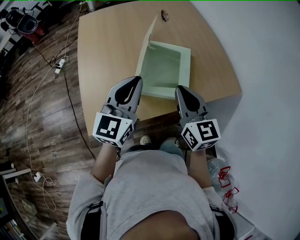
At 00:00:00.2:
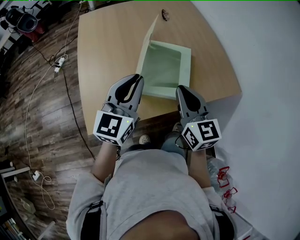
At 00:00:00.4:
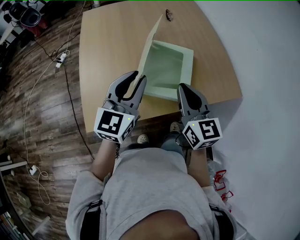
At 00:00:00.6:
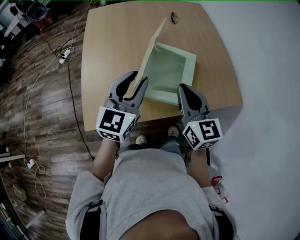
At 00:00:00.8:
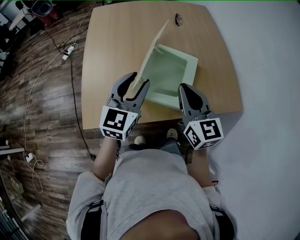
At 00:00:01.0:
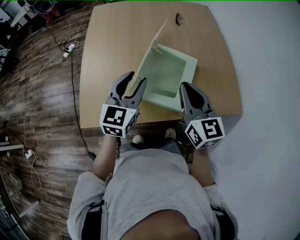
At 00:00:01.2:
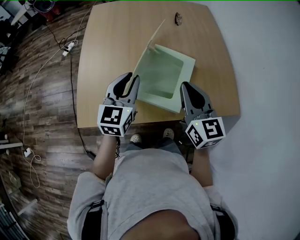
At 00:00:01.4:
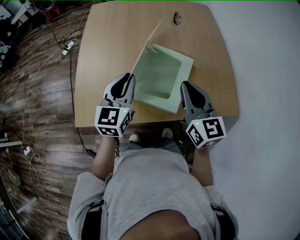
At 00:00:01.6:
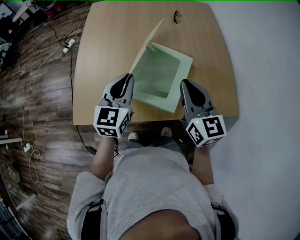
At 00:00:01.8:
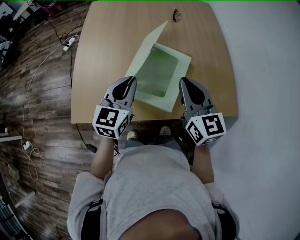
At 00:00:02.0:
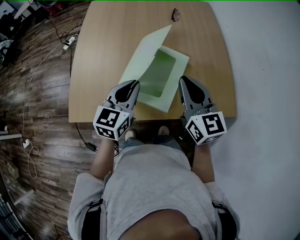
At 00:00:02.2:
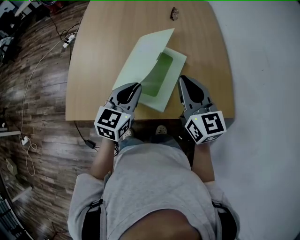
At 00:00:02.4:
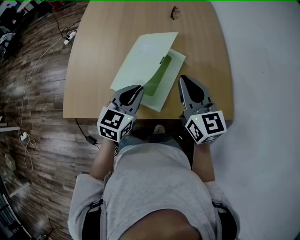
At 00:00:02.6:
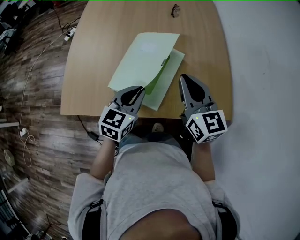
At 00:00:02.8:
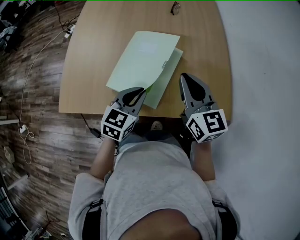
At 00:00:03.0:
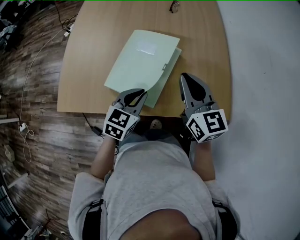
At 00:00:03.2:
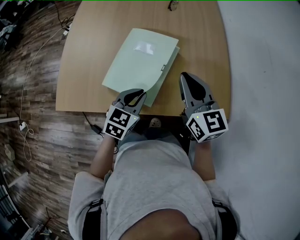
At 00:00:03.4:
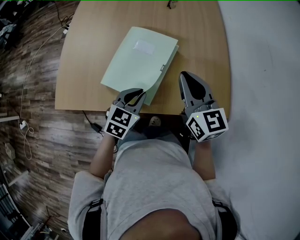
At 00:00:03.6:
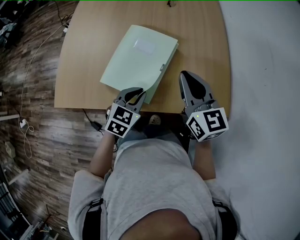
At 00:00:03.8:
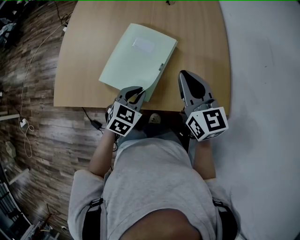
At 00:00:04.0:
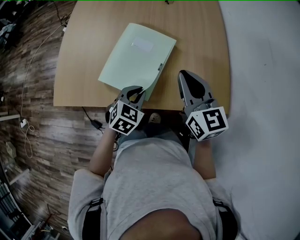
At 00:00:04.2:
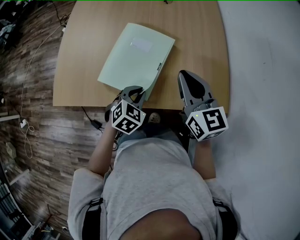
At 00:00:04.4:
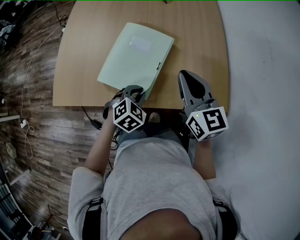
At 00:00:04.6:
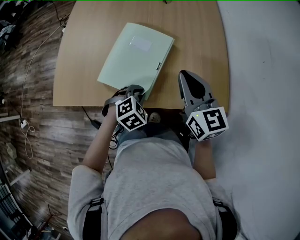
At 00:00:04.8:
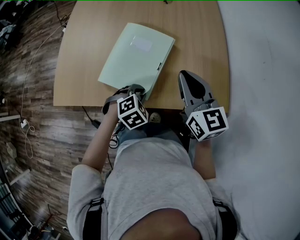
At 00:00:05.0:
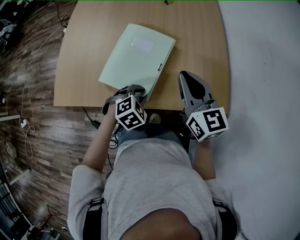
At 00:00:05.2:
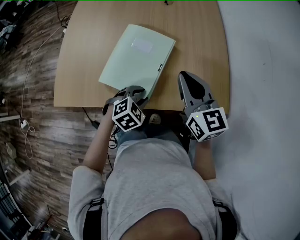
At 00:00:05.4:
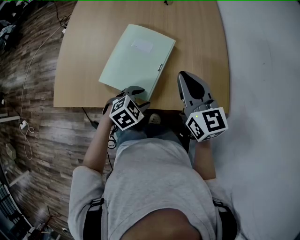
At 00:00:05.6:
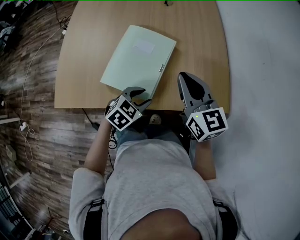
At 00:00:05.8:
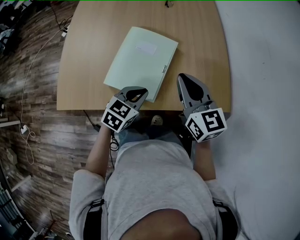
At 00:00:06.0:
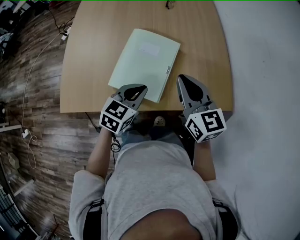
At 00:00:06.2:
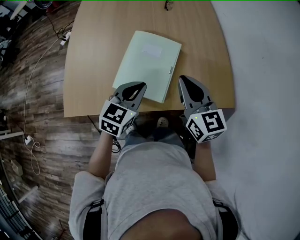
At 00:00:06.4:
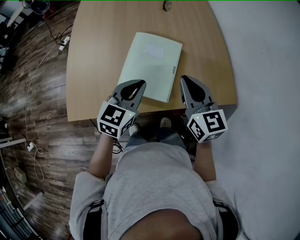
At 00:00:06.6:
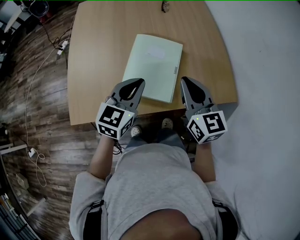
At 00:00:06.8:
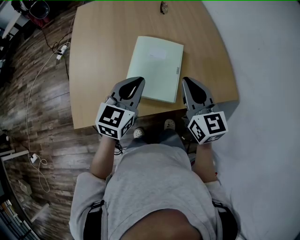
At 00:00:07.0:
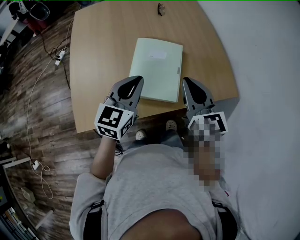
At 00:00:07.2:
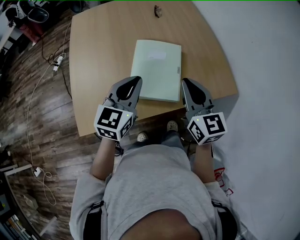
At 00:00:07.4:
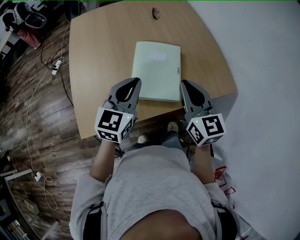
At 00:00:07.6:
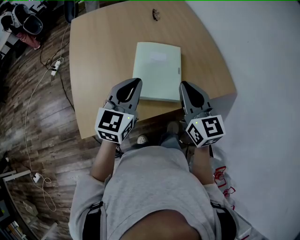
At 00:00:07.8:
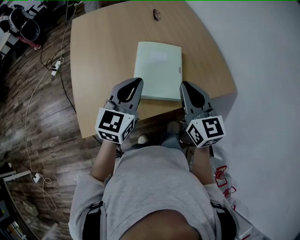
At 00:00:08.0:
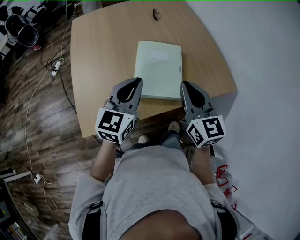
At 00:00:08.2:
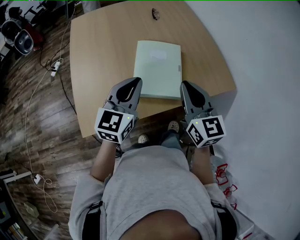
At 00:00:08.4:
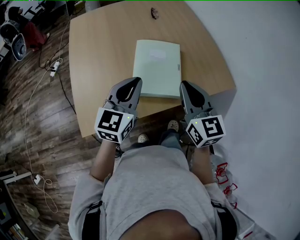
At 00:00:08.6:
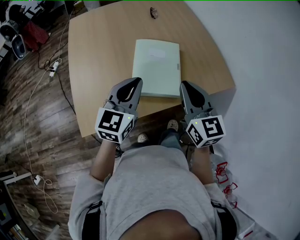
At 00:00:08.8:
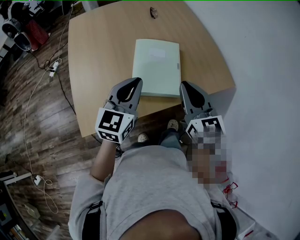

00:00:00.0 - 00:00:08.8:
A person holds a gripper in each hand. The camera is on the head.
00:00:00.0 - 00:00:01.4: The right gripper shifts roughly 10 cm forward and to the right, while the left gripper heads forward, covering about 5 cm, turns by about 20 degrees, and opens, then closes once more.
00:00:01.4 - 00:00:03.0: The left gripper travels to the right and downward by approximately 20 cm, and rotates roughly 20 degrees, while the right gripper heads to the right, covering about 10 cm.
00:00:03.0 - 00:00:04.4: The left gripper heads downward, covering about 5 cm, and swivels some 30 degrees.
00:00:04.4 - 00:00:05.8: The left gripper moves about 5 cm, changes its angle by approximately 30 degrees, and opens, then closes again.
00:00:05.8 - 00:00:07.4: The left gripper is displaced upward and to the left by some 20 cm, and rotates approximately 30 degrees; the right gripper shifts roughly 15 cm to the left and backward, and changes its angle by approximately 20 degrees.
00:00:07.4 - 00:00:08.8: There are only small adjustments of the grippers.

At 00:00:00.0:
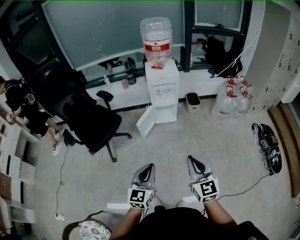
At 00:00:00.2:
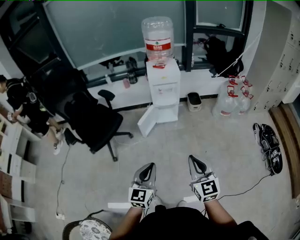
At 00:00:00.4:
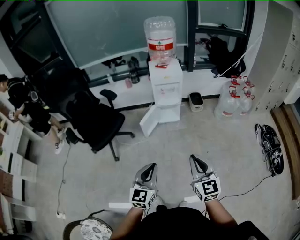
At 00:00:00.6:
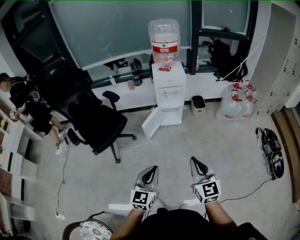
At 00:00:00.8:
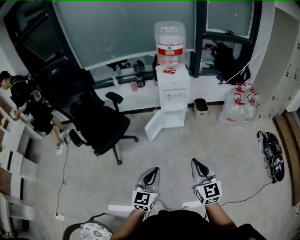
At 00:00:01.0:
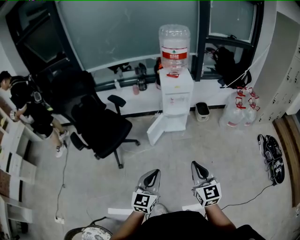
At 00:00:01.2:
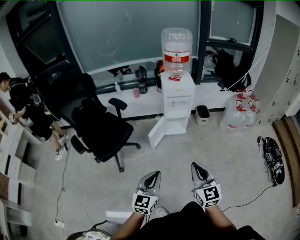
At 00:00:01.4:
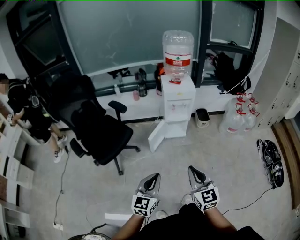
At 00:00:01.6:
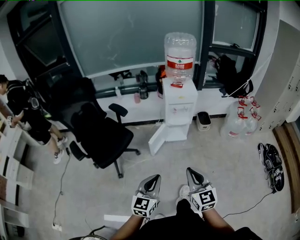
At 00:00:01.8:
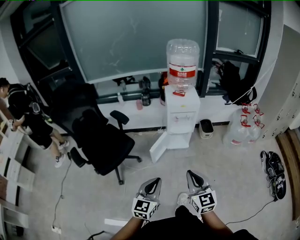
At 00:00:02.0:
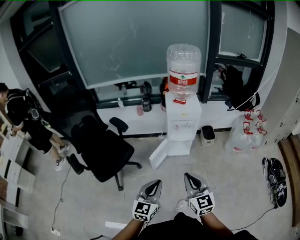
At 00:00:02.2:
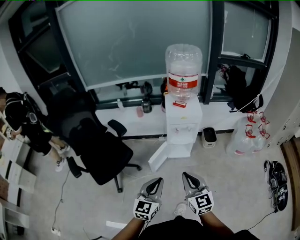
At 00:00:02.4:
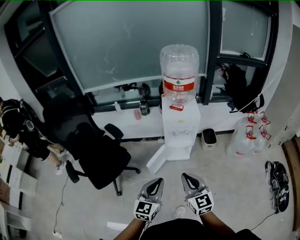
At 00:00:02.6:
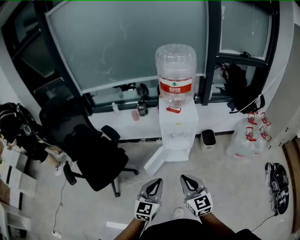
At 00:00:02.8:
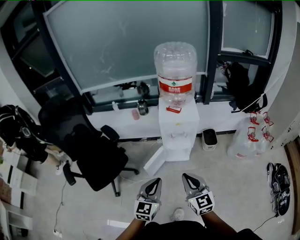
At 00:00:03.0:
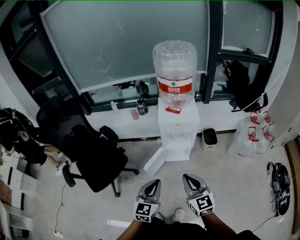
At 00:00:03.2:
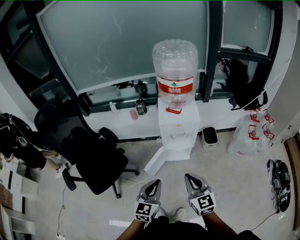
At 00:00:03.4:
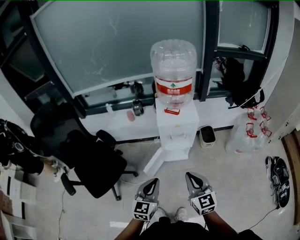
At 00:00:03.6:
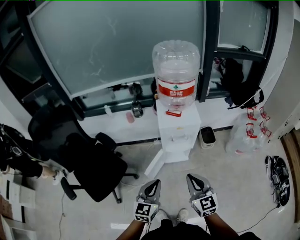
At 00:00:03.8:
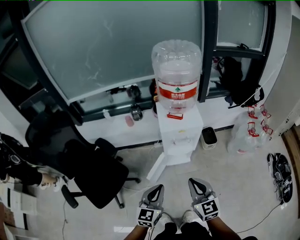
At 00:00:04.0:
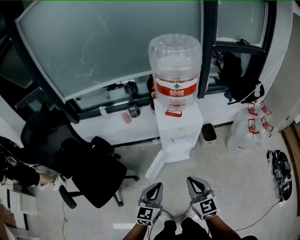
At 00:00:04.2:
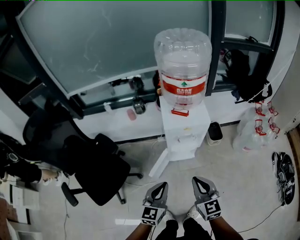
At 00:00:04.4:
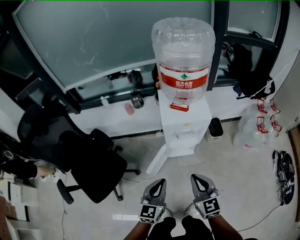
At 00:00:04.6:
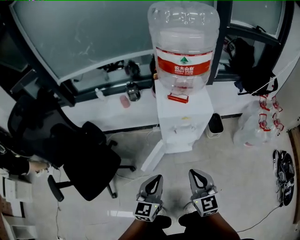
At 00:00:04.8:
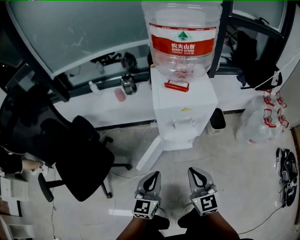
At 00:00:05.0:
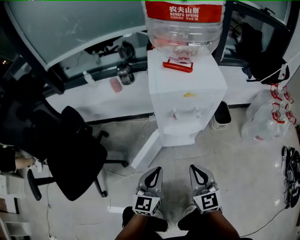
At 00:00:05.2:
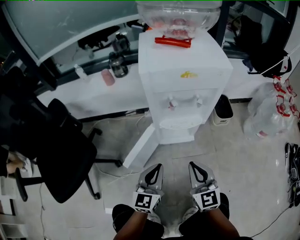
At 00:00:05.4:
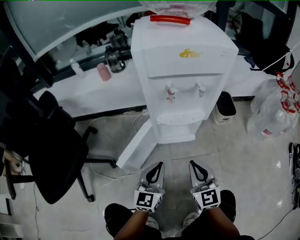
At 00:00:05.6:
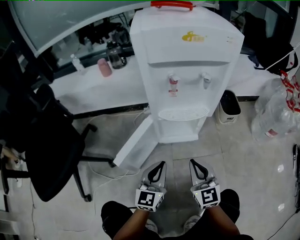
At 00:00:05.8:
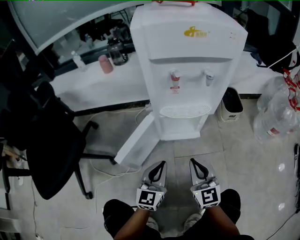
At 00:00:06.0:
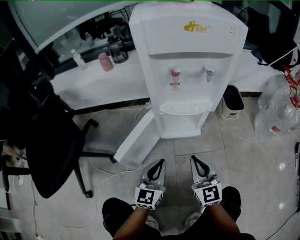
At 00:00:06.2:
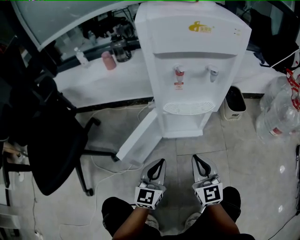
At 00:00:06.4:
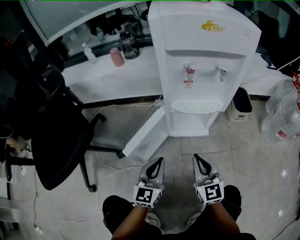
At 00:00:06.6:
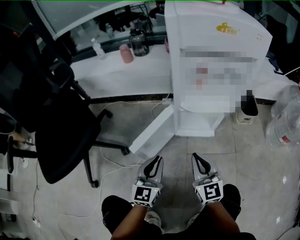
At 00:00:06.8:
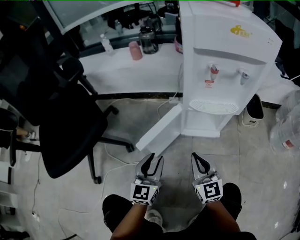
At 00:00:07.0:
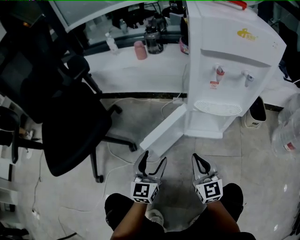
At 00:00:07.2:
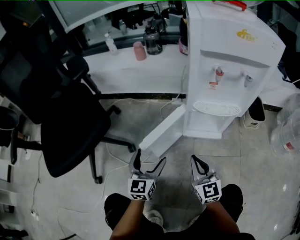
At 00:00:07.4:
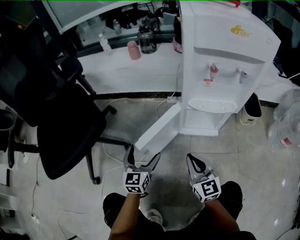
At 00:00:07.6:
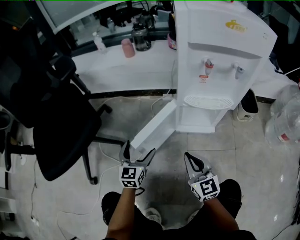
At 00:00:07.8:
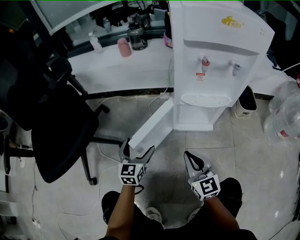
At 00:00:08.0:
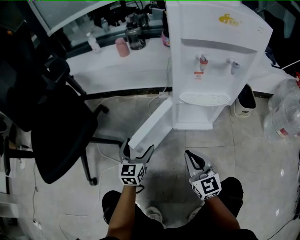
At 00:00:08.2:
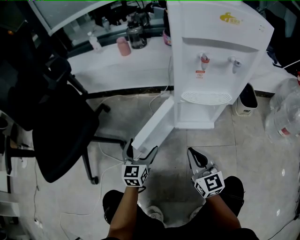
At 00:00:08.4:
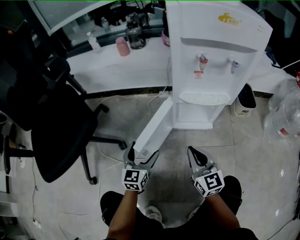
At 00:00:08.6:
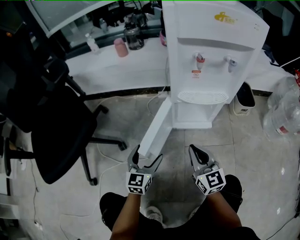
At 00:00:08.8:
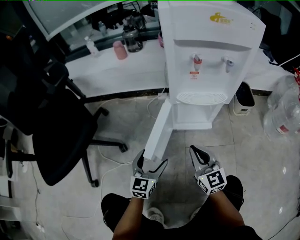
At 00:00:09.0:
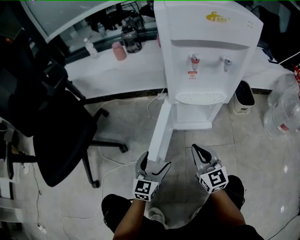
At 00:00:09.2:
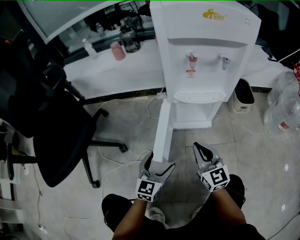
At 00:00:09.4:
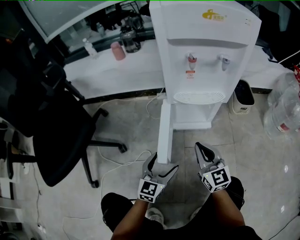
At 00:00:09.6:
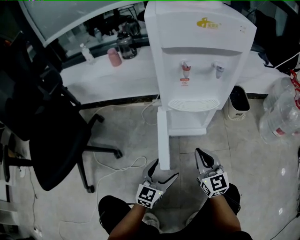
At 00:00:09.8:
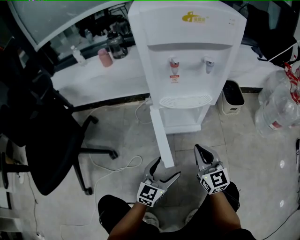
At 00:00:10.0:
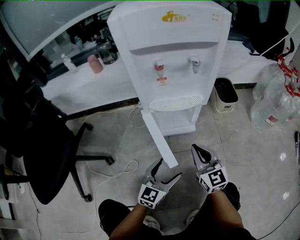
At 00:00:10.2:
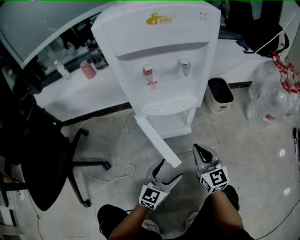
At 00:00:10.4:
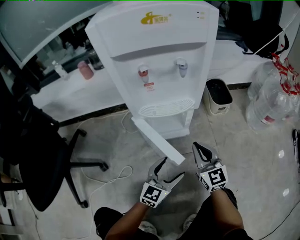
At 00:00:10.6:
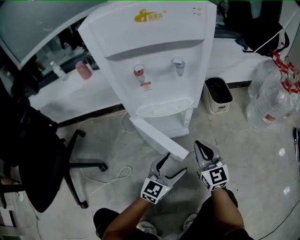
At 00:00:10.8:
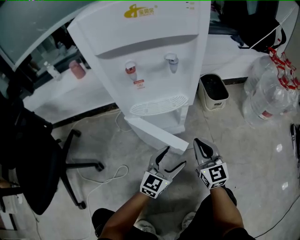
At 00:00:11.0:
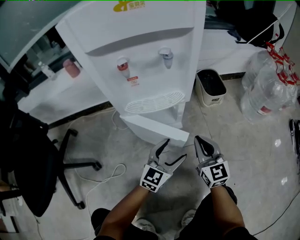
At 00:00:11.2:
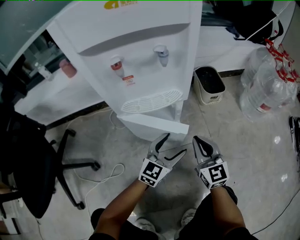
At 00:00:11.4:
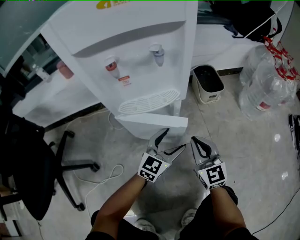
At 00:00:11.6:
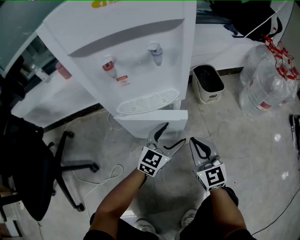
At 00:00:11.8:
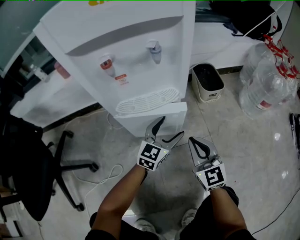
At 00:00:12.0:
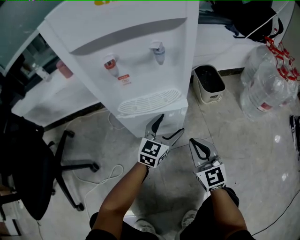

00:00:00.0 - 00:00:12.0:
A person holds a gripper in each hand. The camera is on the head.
00:00:00.0 - 00:00:01.6: Both grippers travel together to the left and forward, roughly 15 cm.
00:00:01.6 - 00:00:03.0: Both grippers travel together forward, some 25 cm.
00:00:03.0 - 00:00:04.4: The two grippers go about 10 cm forward and downward.
00:00:04.4 - 00:00:06.0: Both grippers move downward, about 50 cm.
00:00:06.0 - 00:00:07.6: The left gripper heads to the left, covering some 15 cm, and opens its fingers. The right gripper travels to the left by some 10 cm.
00:00:07.6 - 00:00:09.0: The left gripper heads to the right and backward, covering roughly 10 cm. The right gripper travels to the right by approximately 5 cm.
00:00:09.0 - 00:00:10.4: The left gripper goes roughly 20 cm to the right, and changes its angle by roughly 30 degrees; the right gripper moves to the right and forward, about 15 cm.
00:00:10.4 - 00:00:12.0: The left gripper shifts some 15 cm forward.

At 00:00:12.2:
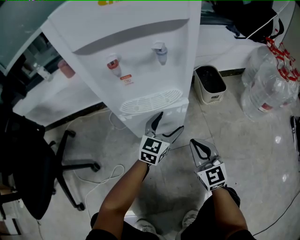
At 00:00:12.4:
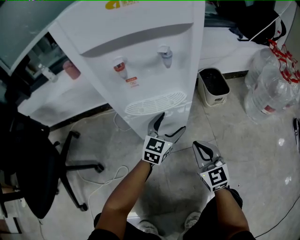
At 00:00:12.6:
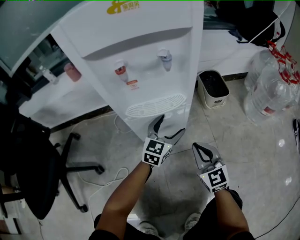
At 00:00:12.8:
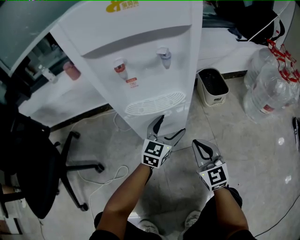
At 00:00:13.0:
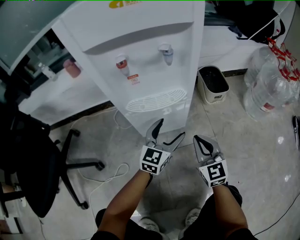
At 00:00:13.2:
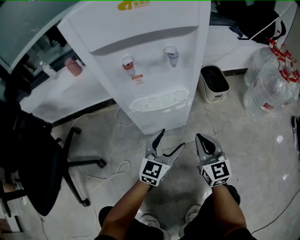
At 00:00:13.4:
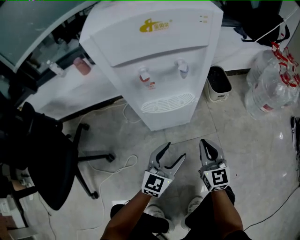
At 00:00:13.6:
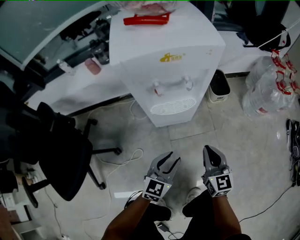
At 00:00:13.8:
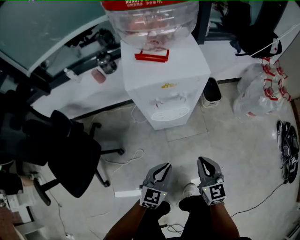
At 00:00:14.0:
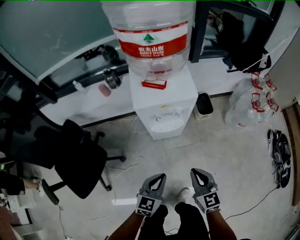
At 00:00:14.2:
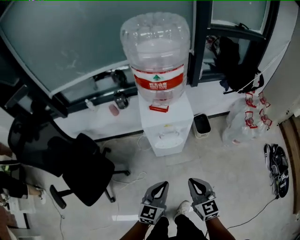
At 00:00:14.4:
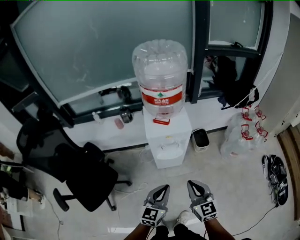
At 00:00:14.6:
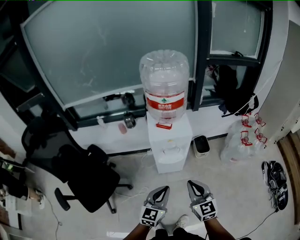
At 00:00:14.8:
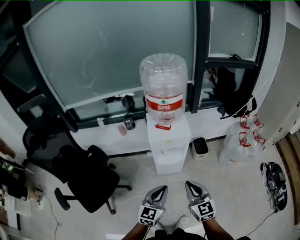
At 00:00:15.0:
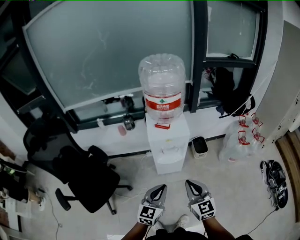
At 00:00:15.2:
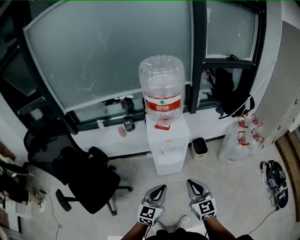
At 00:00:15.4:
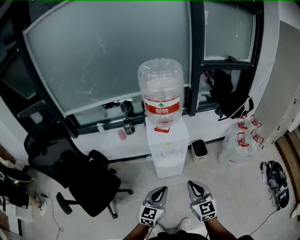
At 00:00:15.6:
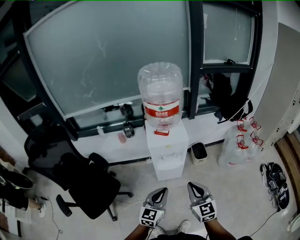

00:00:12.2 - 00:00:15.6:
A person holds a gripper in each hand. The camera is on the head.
00:00:12.2 - 00:00:13.8: The two grippers go approximately 35 cm upward and backward. The left gripper closes up.
00:00:13.8 - 00:00:15.6: Both grippers travel together upward, roughly 30 cm.
